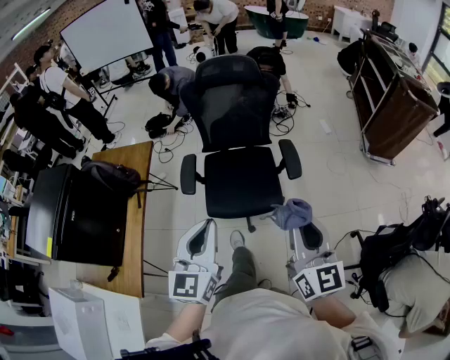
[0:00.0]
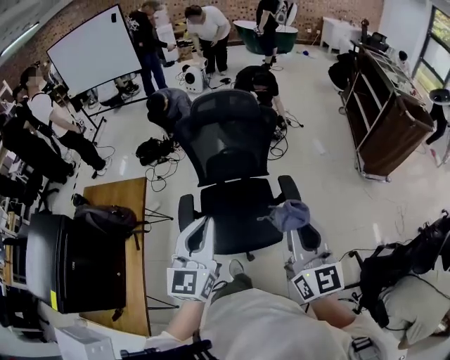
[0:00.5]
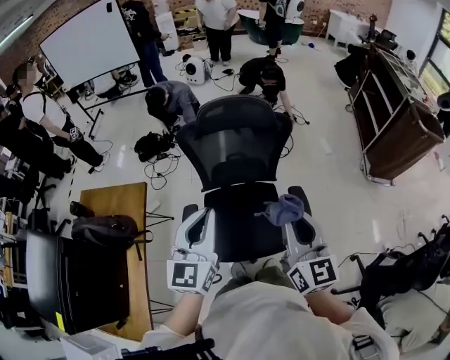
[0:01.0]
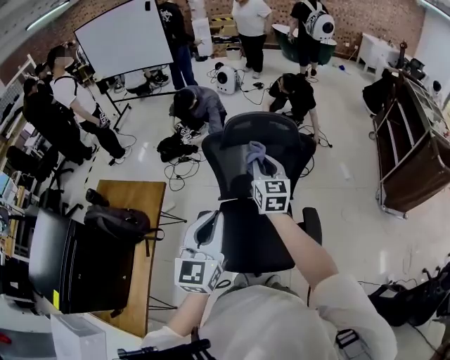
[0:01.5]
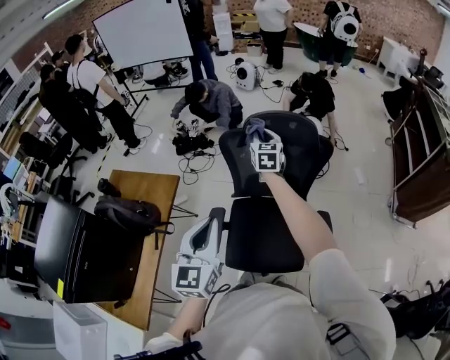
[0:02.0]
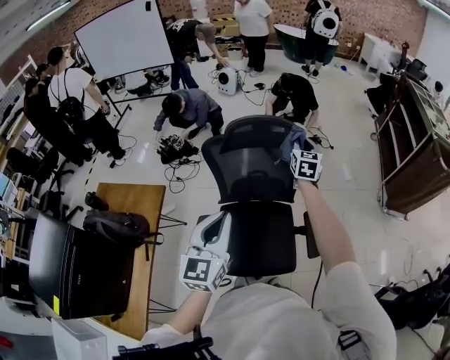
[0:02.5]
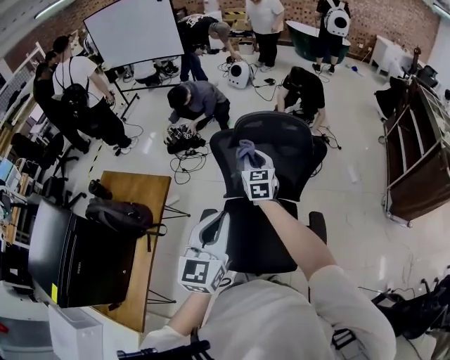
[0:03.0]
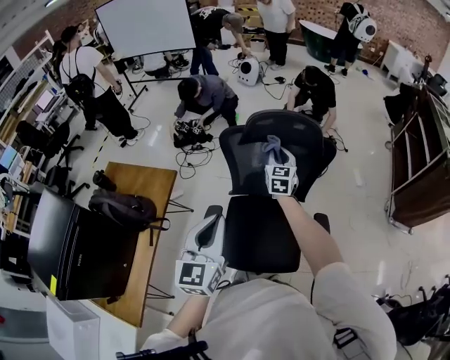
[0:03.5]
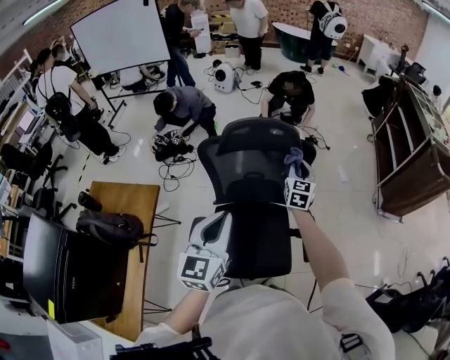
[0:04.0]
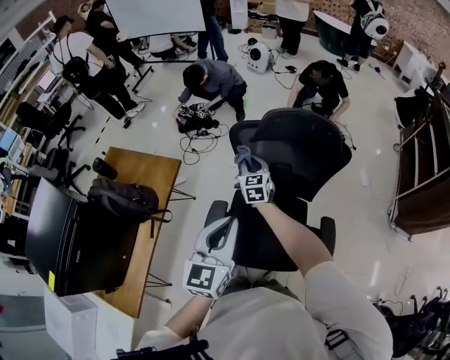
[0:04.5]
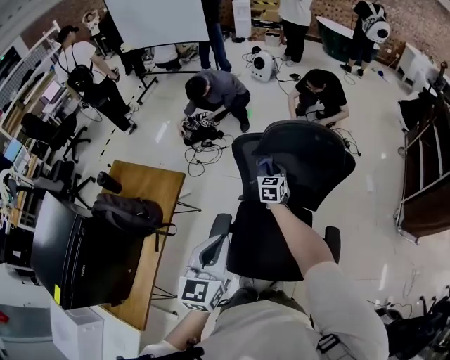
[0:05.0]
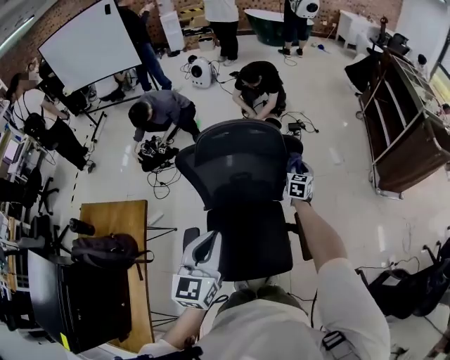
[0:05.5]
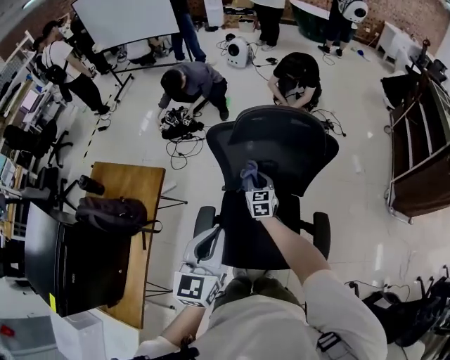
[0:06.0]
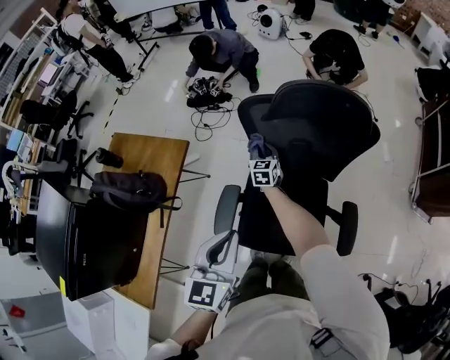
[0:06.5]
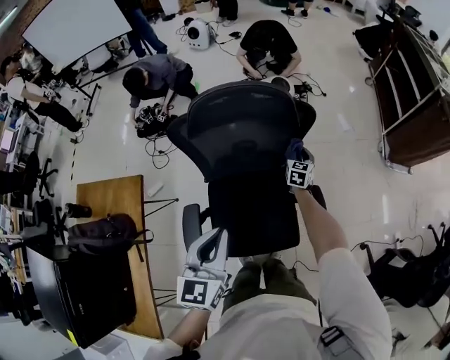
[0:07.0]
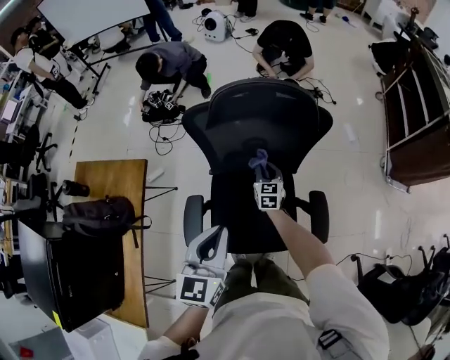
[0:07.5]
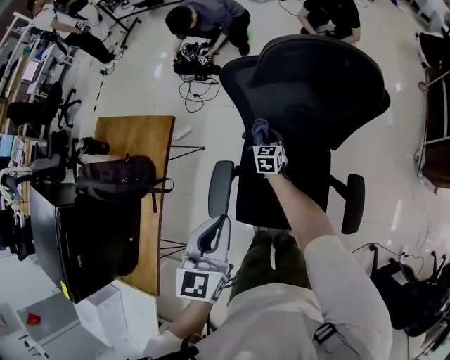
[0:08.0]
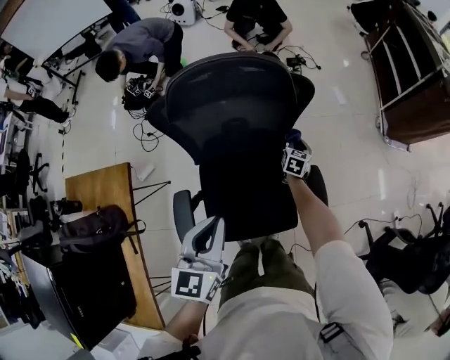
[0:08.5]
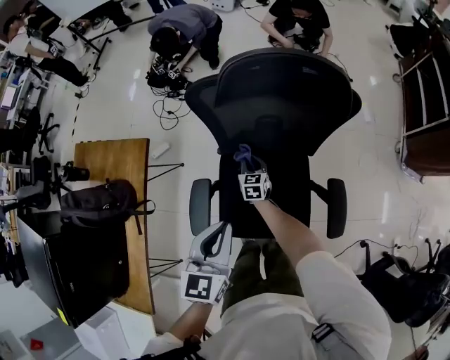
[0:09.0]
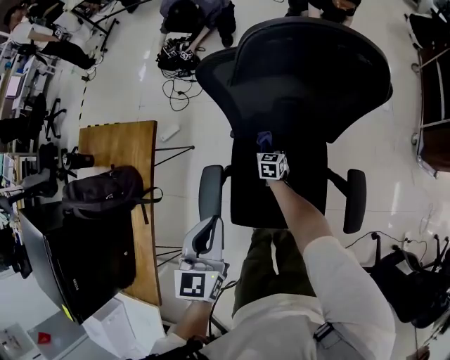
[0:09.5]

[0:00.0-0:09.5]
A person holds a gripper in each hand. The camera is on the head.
0:00.0 to 0:02.0: The left gripper heads forward, covering about 30 cm. Meanwhile the right gripper is displaced forward by about 70 cm, and swivels approximately 30 degrees.
0:02.0 to 0:04.0: The right gripper moves left and right over about 20 cm, changing direction 2 times; the left gripper moves forward, about 5 cm.
0:04.0 to 0:05.5: The right gripper moves downward and forward, approximately 20 cm, and travels to the left and back again, about 30 cm each way. The left gripper shifts by roughly 5 cm.
0:05.5 to 0:07.5: The left gripper travels forward by some 10 cm. Meanwhile the right gripper swings left and right, some 35 cm each way, with 2 reversals, and rotates approximately 20 degrees.
0:07.5 to 0:09.5: The left gripper is displaced forward, downward and to the left by approximately 15 cm. The right gripper swings left and right, some 35 cm each way, with 2 reversals.

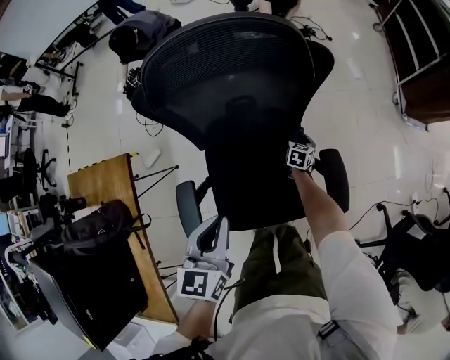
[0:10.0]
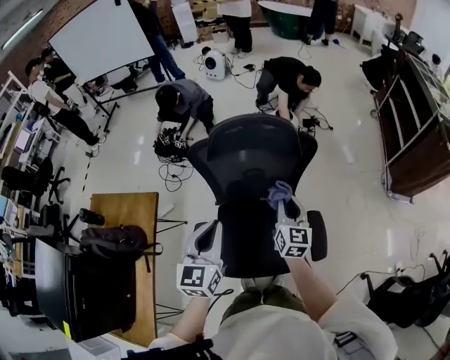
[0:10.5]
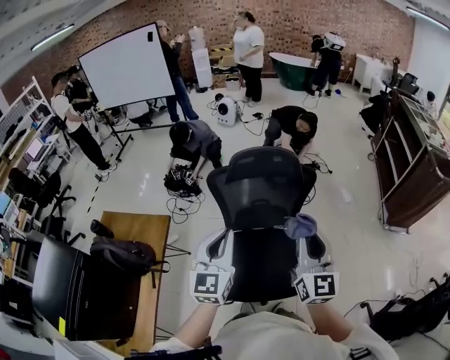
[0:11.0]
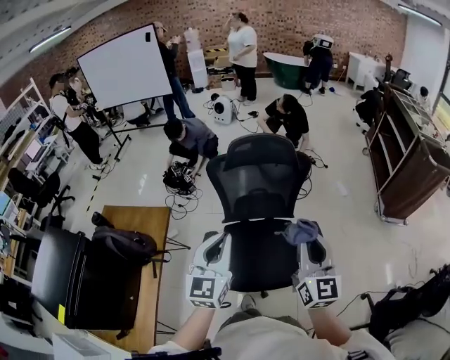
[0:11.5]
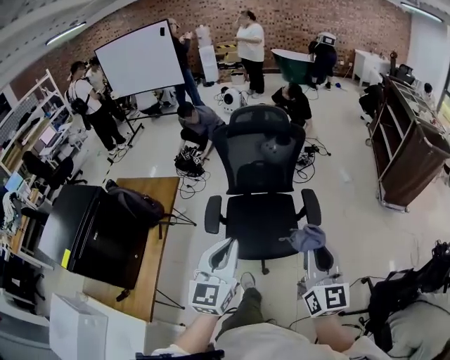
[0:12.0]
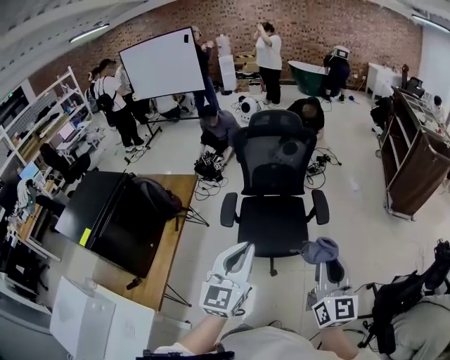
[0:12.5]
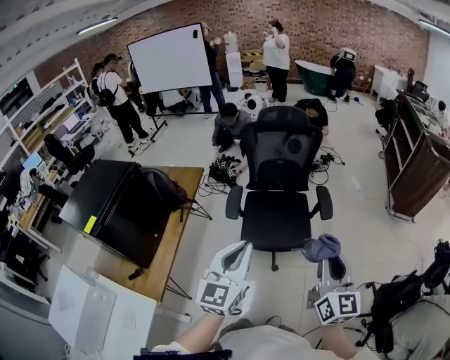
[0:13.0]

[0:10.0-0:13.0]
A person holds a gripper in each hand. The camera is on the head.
0:10.0 to 0:11.5: The pair of grippers is taken backward, about 60 cm. The left gripper turns by about 30 degrees. Meanwhile the right gripper moves upward, some 70 cm, and tips its fingers upward by some 70 degrees.
0:11.5 to 0:13.0: The grippers both shift backward by approximately 35 cm.

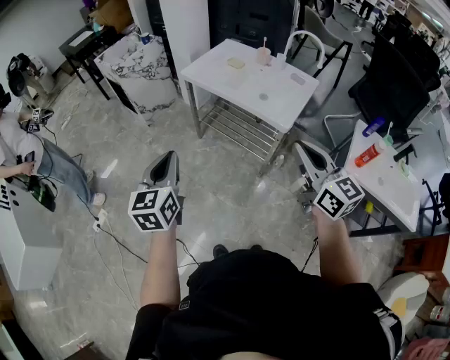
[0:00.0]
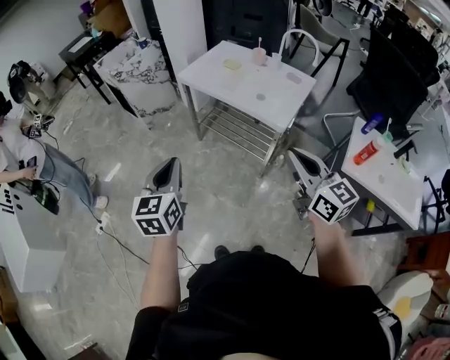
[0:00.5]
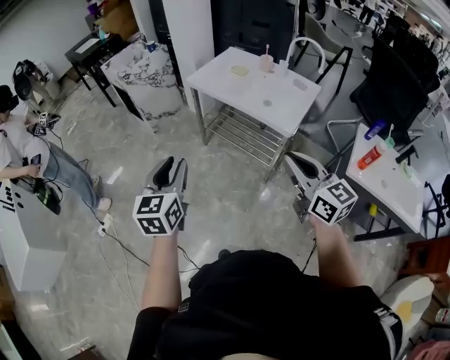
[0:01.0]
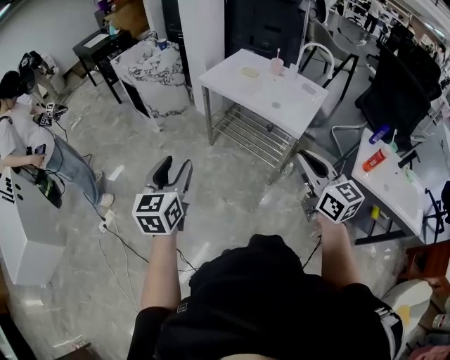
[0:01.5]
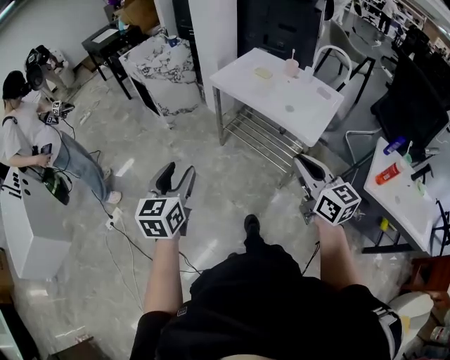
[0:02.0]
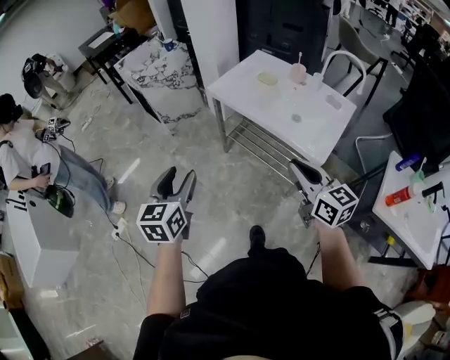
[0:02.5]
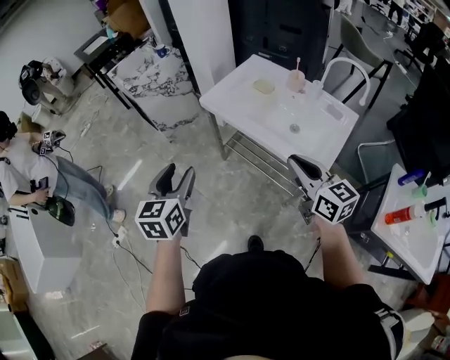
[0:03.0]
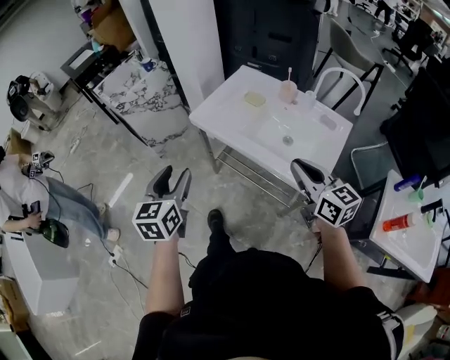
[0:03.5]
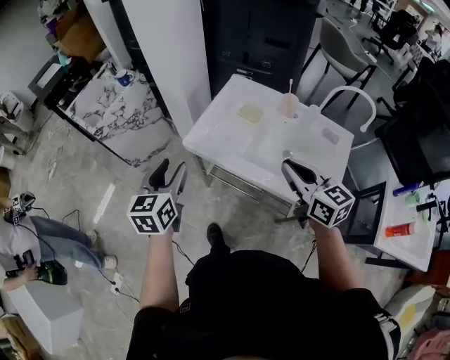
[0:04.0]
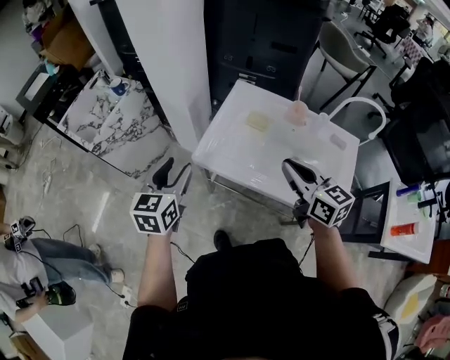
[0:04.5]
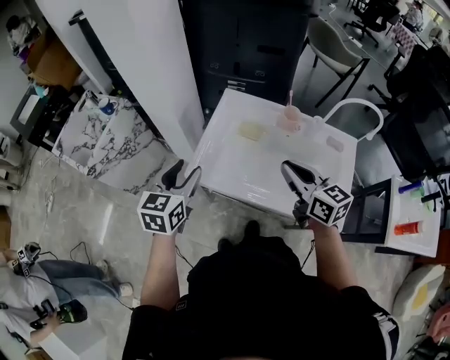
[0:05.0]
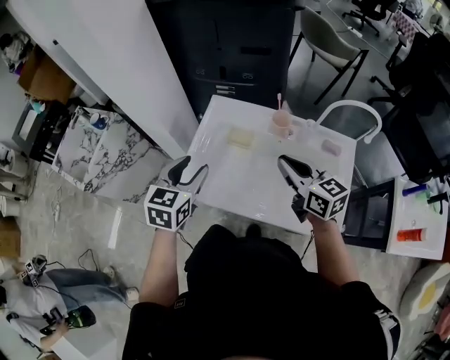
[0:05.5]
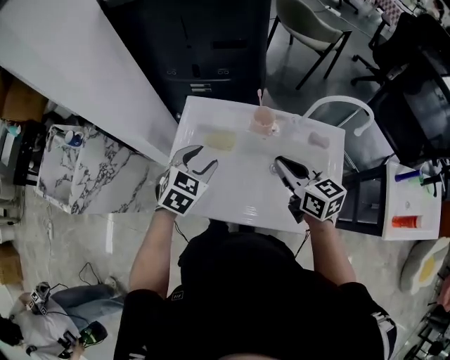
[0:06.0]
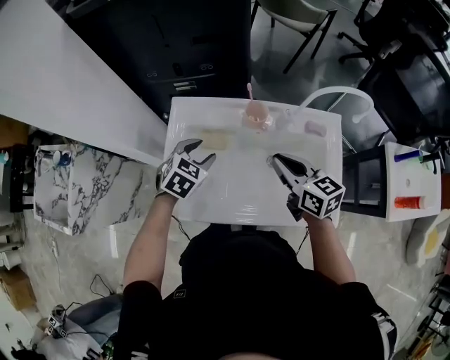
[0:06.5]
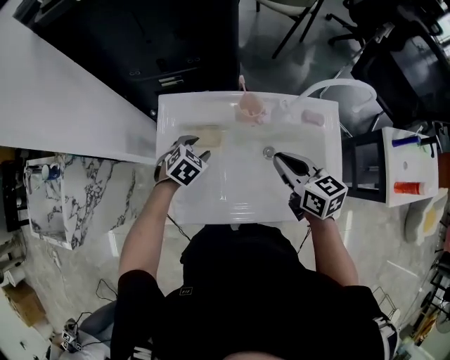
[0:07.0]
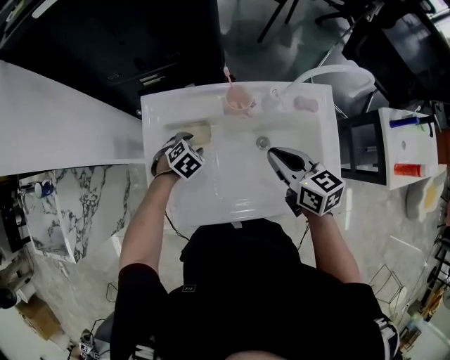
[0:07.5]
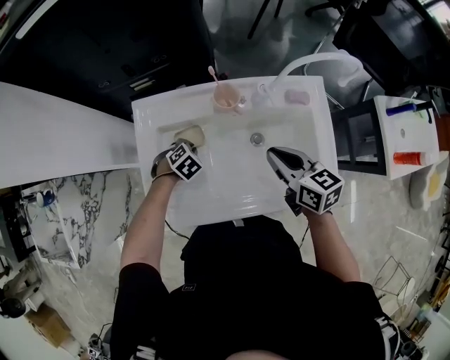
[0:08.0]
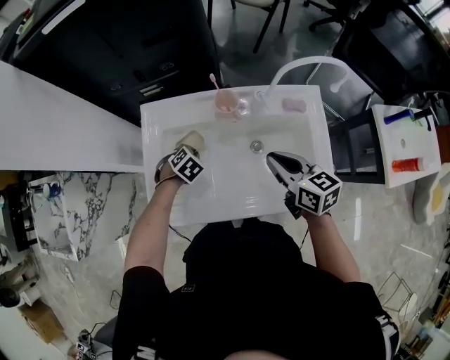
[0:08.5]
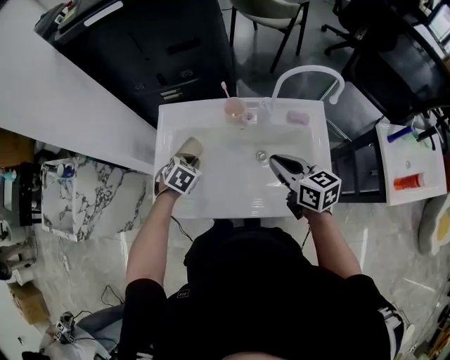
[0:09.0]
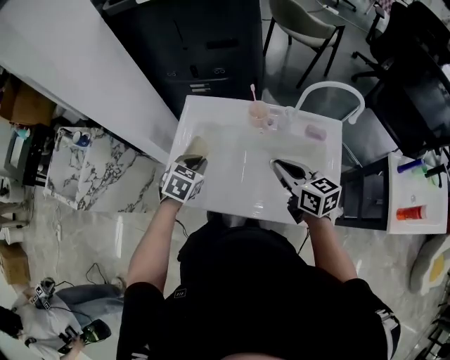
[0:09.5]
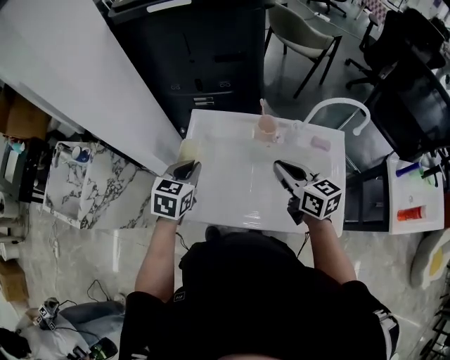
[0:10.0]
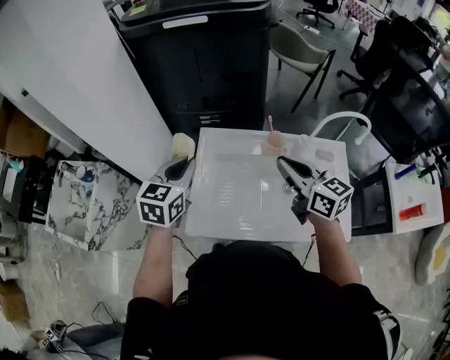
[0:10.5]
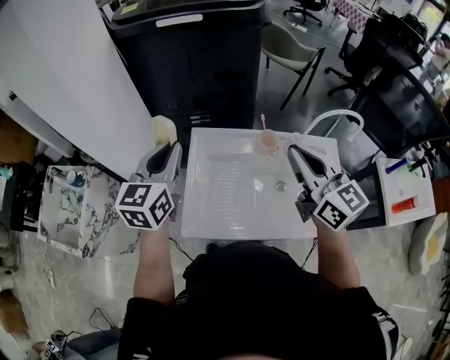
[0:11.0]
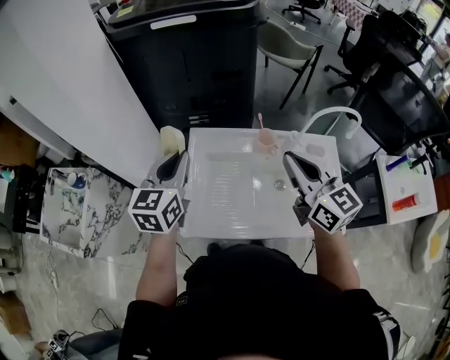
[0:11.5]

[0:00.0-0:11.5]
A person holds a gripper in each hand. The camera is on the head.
0:00.0 to 0:02.0: The left gripper shifts some 5 cm to the left, and opens its fingers. The right gripper shifts approximately 10 cm to the left and downward.
0:02.0 to 0:04.0: Both grippers are carried forward, roughly 50 cm.
0:04.0 to 0:06.0: The right gripper goes some 20 cm forward and to the right, while the left gripper heads forward and to the right, covering approximately 30 cm, and turns by approximately 50 degrees.
0:06.0 to 0:07.5: The right gripper goes approximately 5 cm downward. Meanwhile the left gripper heads downward, covering about 25 cm, and rotates some 40 degrees.
0:07.5 to 0:09.5: The left gripper is displaced upward by roughly 15 cm, swivels approximately 40 degrees, and closes its fingers; the right gripper moves roughly 5 cm.
0:09.5 to 0:11.5: The two grippers go about 20 cm upward and to the left. The right gripper swivels approximately 30 degrees, while the left gripper tips its fingers upward by about 40 degrees.

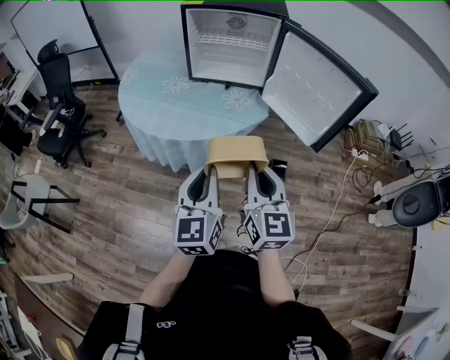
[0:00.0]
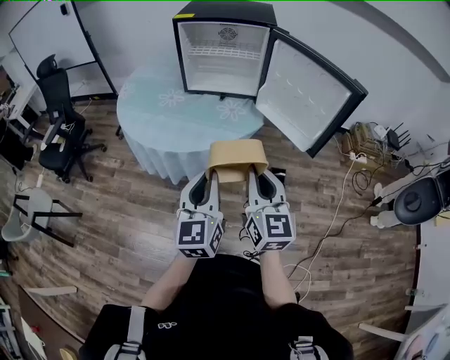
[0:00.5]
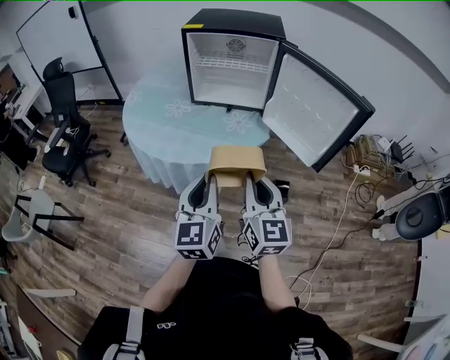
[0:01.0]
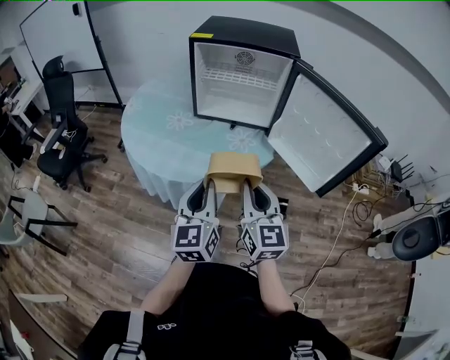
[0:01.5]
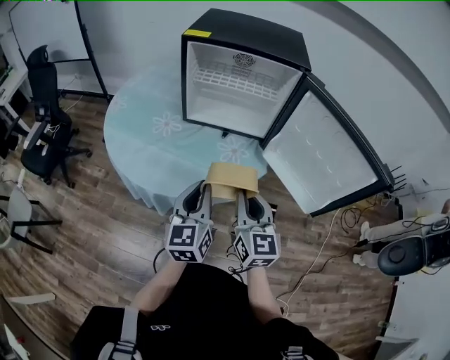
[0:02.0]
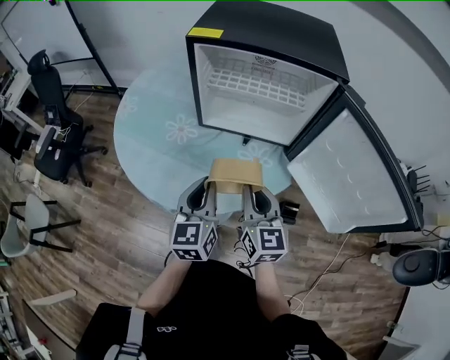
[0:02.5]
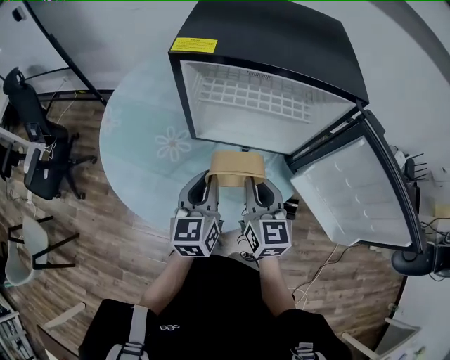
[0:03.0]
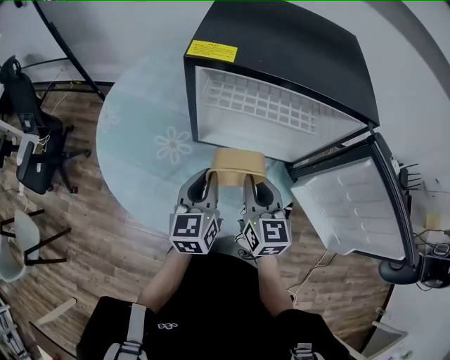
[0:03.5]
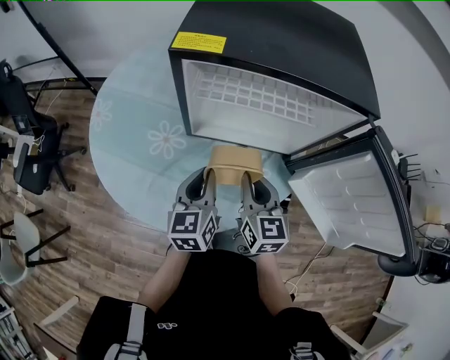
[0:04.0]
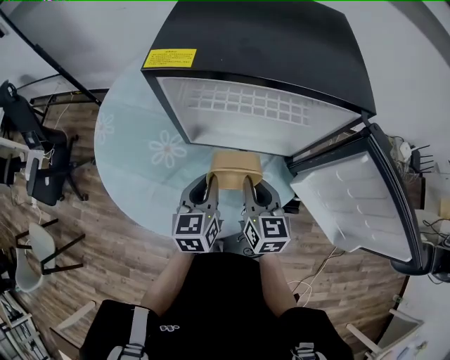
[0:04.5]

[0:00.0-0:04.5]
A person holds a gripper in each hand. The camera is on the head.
0:00.0 to 0:02.0: Both grippers move forward, approximately 20 cm.
0:02.0 to 0:04.5: The grippers both shift forward by approximately 25 cm.
